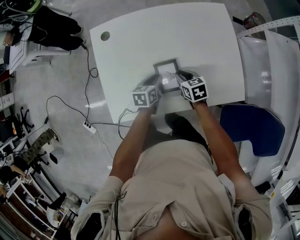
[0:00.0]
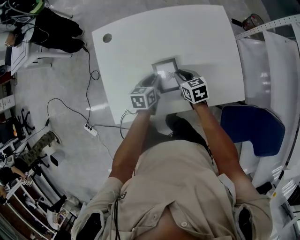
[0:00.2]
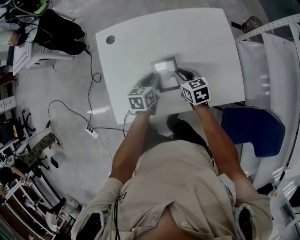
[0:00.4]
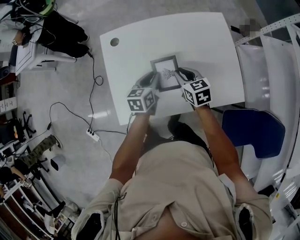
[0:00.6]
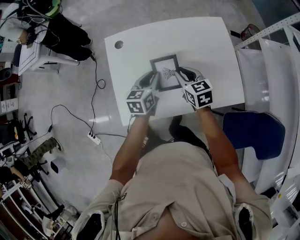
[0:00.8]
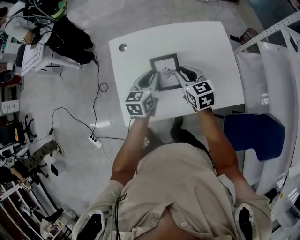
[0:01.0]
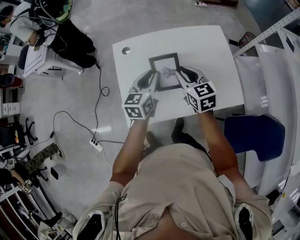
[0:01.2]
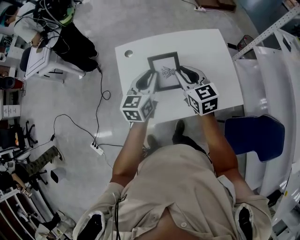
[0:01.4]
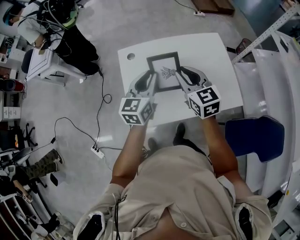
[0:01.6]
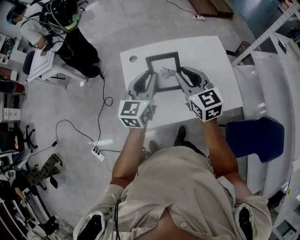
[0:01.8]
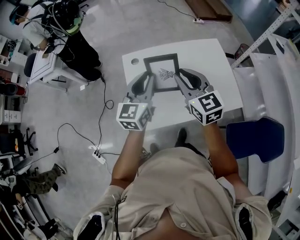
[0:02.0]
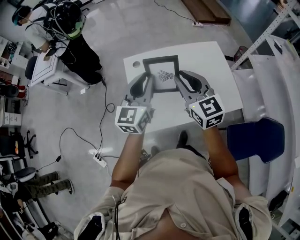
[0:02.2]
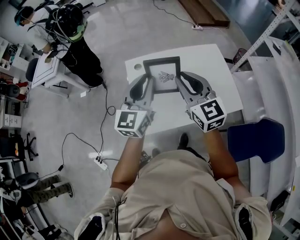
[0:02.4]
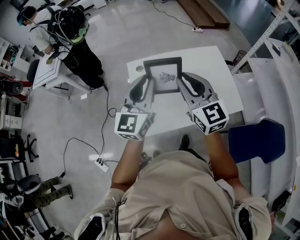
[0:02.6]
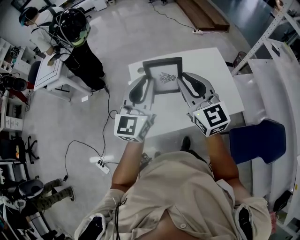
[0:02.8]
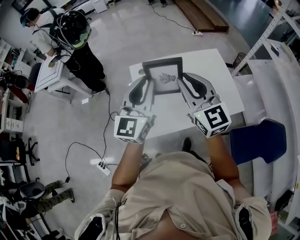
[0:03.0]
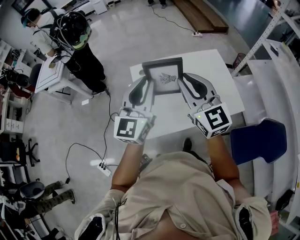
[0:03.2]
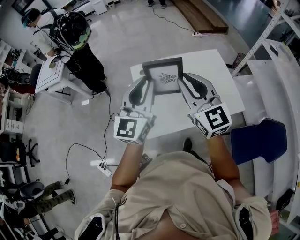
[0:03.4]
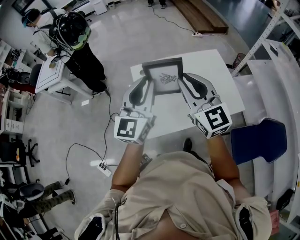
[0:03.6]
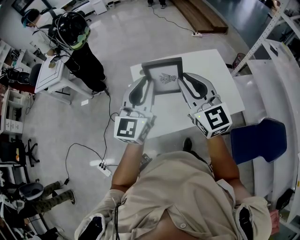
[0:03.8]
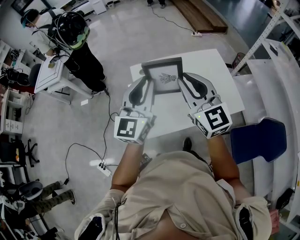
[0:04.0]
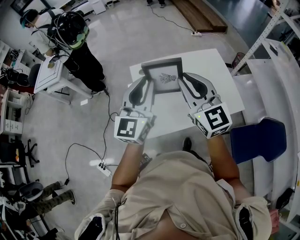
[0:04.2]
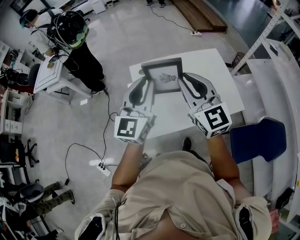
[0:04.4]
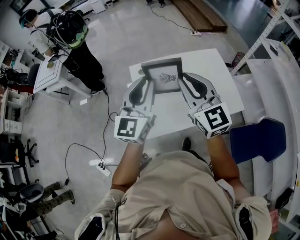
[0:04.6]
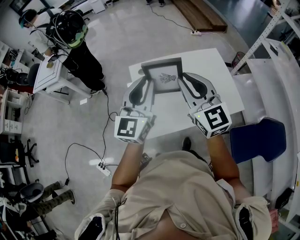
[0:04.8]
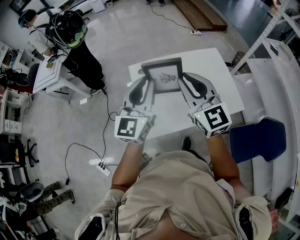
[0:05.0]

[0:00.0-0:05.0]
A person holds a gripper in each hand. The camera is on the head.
0:00.0 to 0:01.6: The two grippers go some 35 cm upward. The left gripper points its fingers roughly 30 degrees further upward. The right gripper points its fingers roughly 30 degrees further upward.
0:01.6 to 0:03.4: Both grippers move upward, to the left and backward, approximately 20 cm. The left gripper turns by some 20 degrees; the right gripper rotates approximately 20 degrees.
0:03.4 to 0:05.0: There are only small adjustments of the grippers.

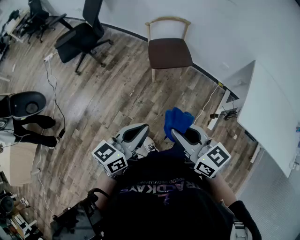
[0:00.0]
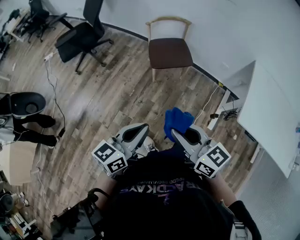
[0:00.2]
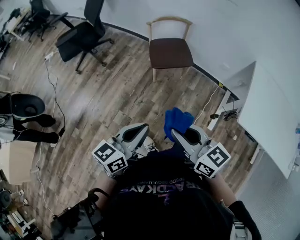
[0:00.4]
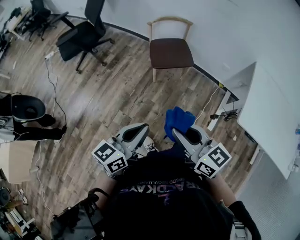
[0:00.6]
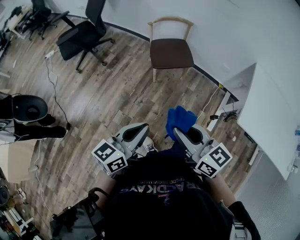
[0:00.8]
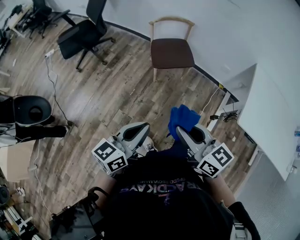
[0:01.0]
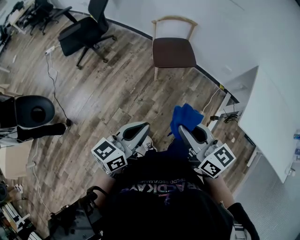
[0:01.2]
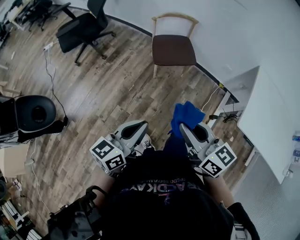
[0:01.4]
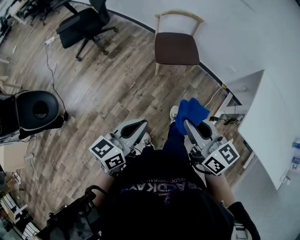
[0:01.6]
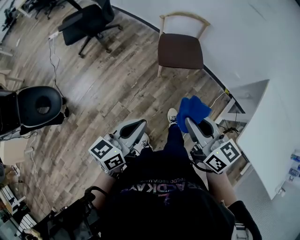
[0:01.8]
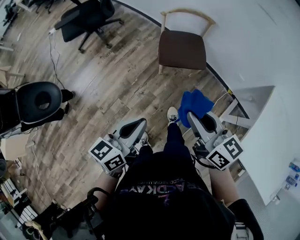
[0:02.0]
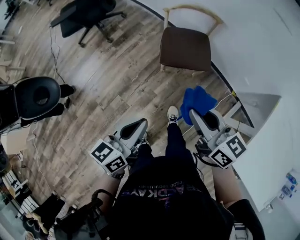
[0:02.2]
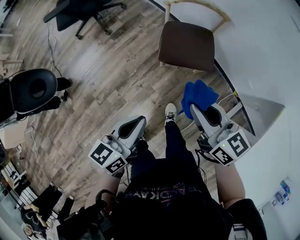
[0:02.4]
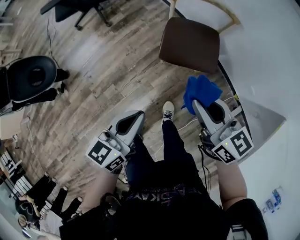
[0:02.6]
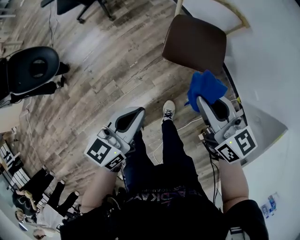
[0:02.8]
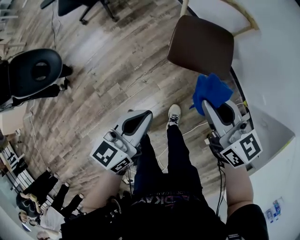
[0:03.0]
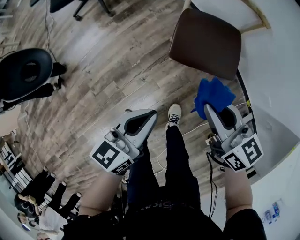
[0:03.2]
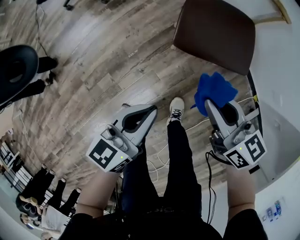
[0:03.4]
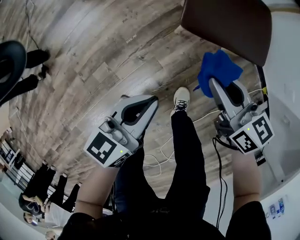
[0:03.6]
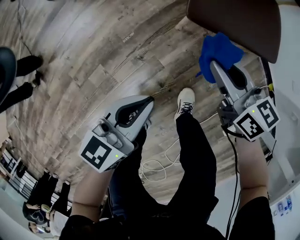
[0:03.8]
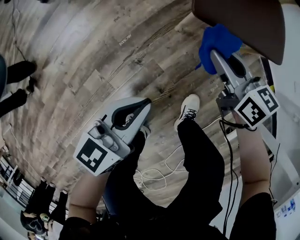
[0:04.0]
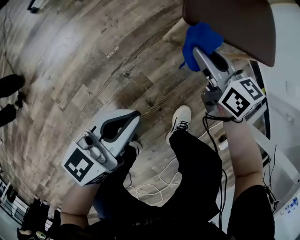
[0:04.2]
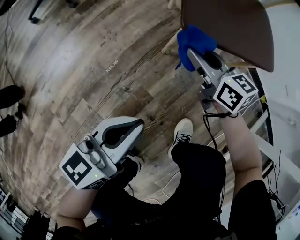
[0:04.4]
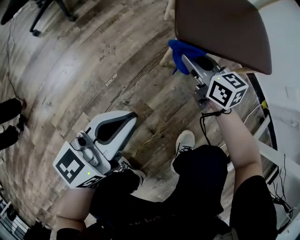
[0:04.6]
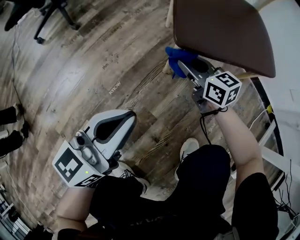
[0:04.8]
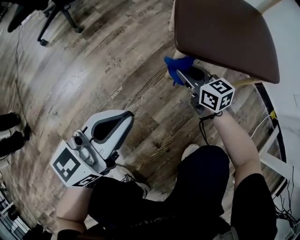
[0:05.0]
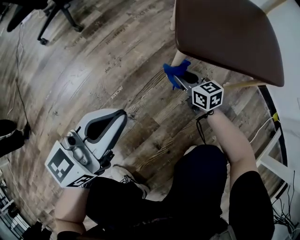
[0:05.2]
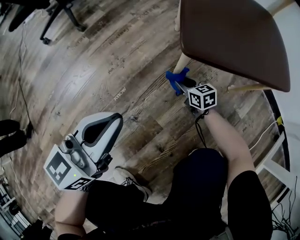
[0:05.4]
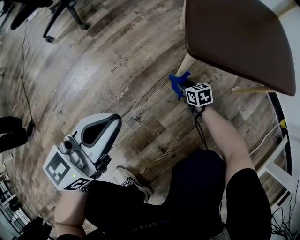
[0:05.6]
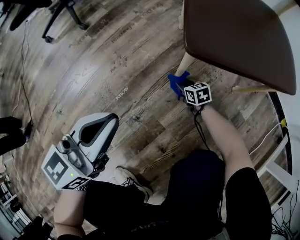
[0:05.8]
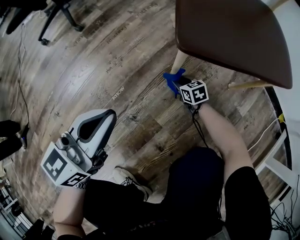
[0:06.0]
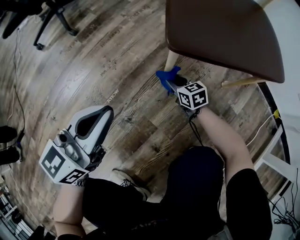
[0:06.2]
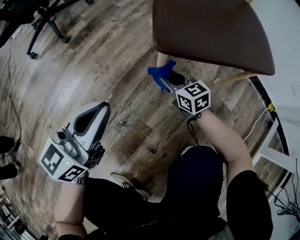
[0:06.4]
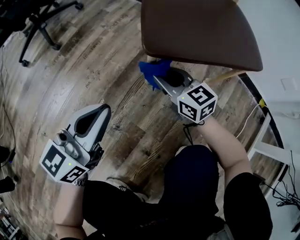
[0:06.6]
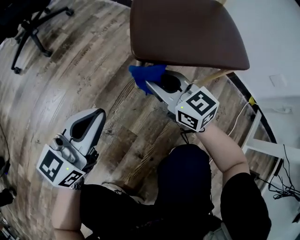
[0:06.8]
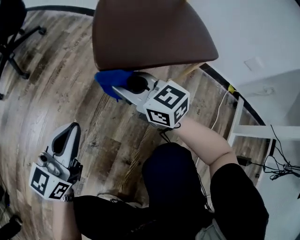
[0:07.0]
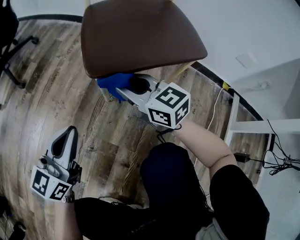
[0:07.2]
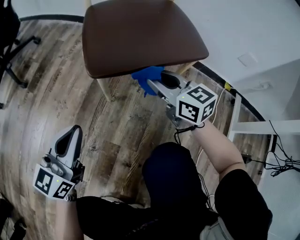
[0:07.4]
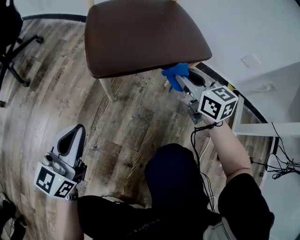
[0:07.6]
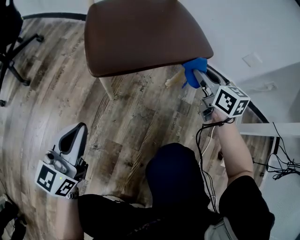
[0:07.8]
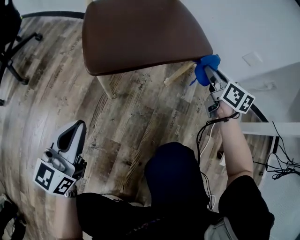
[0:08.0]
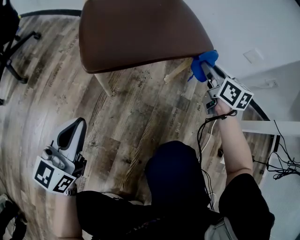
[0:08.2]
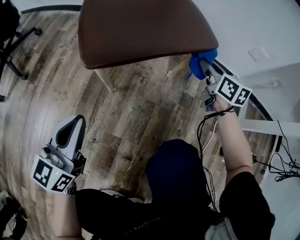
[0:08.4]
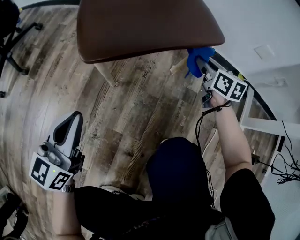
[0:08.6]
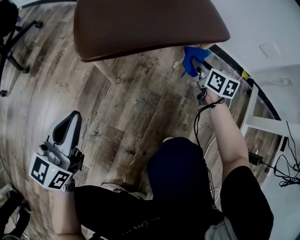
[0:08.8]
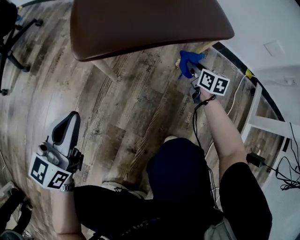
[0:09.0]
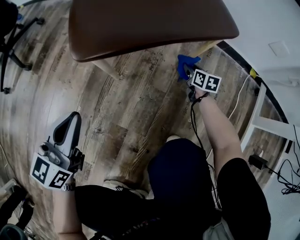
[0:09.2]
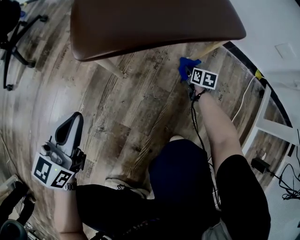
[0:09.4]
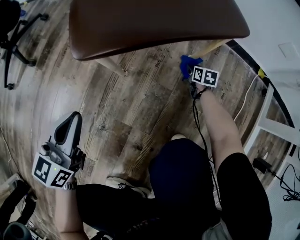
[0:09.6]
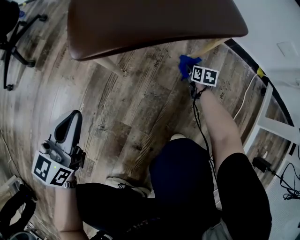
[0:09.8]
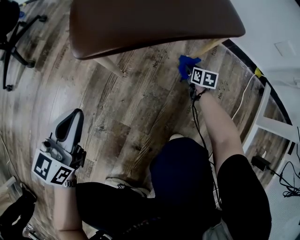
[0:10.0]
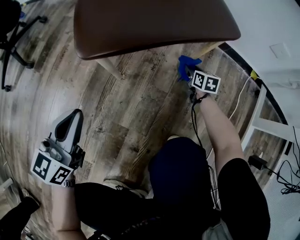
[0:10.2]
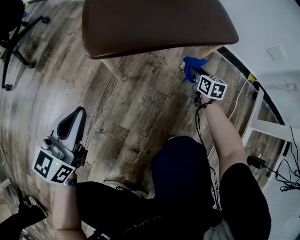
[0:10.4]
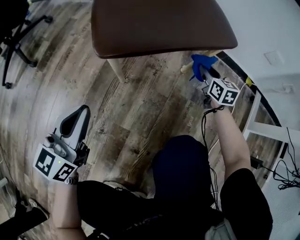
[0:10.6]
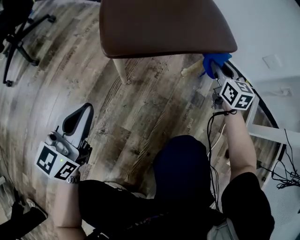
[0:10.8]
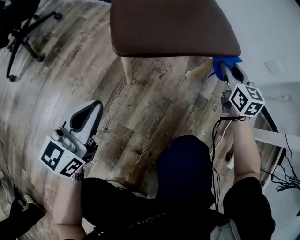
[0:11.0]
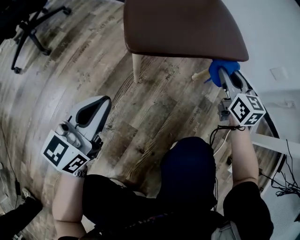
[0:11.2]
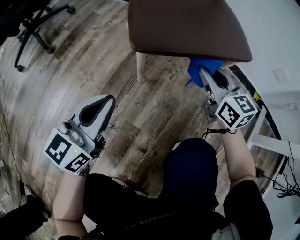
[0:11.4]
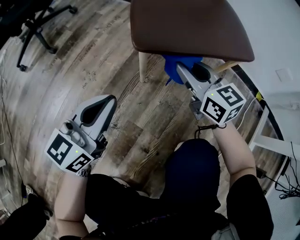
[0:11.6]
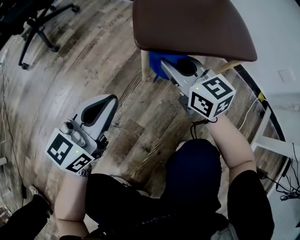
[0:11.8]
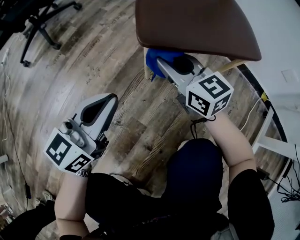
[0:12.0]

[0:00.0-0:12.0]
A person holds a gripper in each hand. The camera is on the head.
0:00.0 to 0:01.6: The right gripper heads forward, covering roughly 5 cm.
0:01.6 to 0:03.0: Both grippers move forward and downward, some 35 cm. The left gripper changes its angle by about 20 degrees, while the right gripper changes its angle by some 20 degrees.
0:03.0 to 0:04.4: The grippers both shift downward by approximately 40 cm.
0:04.4 to 0:06.0: The left gripper heads forward and downward, covering approximately 10 cm. The right gripper shifts roughly 35 cm downward, and swivels approximately 20 degrees.
0:06.0 to 0:07.6: The left gripper is displaced to the right by about 5 cm. Meanwhile the right gripper goes roughly 40 cm upward and to the right, and changes its angle by about 40 degrees.
0:07.6 to 0:09.0: The right gripper is displaced downward and to the right by approximately 25 cm, and swivels roughly 30 degrees.
0:09.0 to 0:10.4: The right gripper reaches some 15 cm downward, then returns.
0:10.4 to 0:12.0: The right gripper travels to the left and upward by about 40 cm, and changes its angle by about 50 degrees.

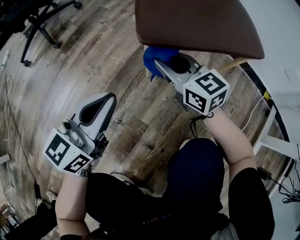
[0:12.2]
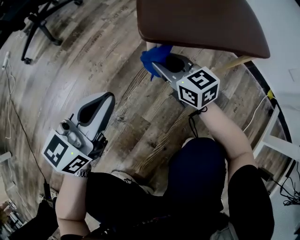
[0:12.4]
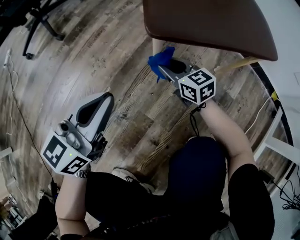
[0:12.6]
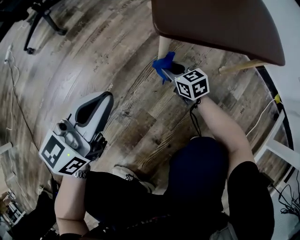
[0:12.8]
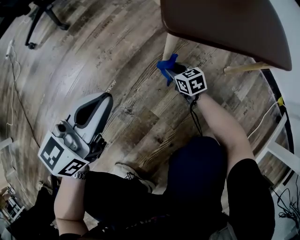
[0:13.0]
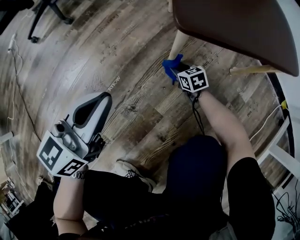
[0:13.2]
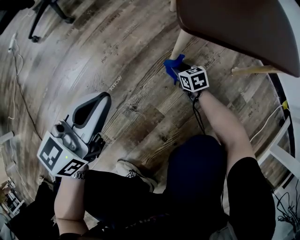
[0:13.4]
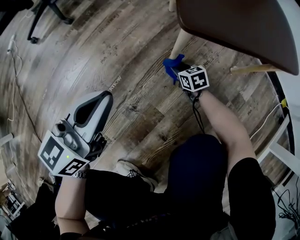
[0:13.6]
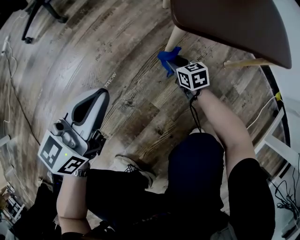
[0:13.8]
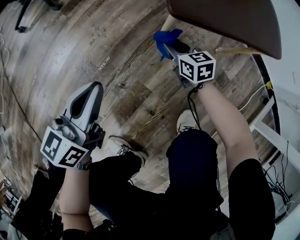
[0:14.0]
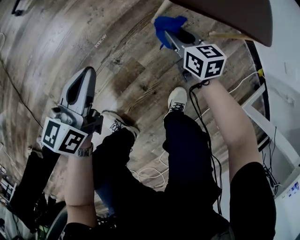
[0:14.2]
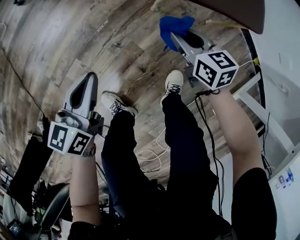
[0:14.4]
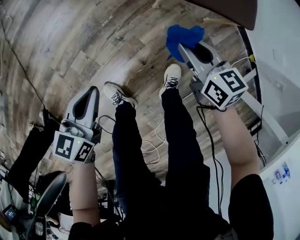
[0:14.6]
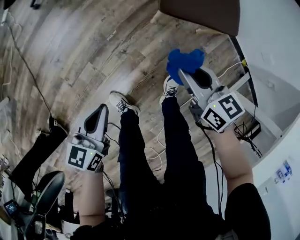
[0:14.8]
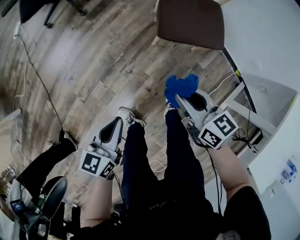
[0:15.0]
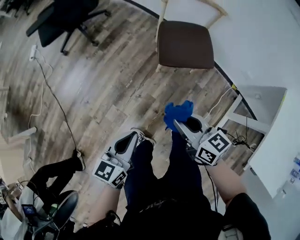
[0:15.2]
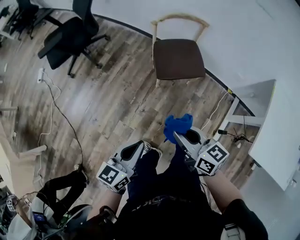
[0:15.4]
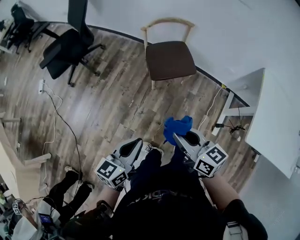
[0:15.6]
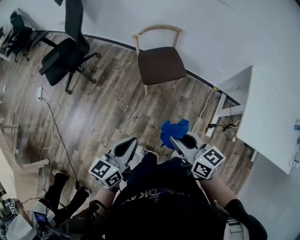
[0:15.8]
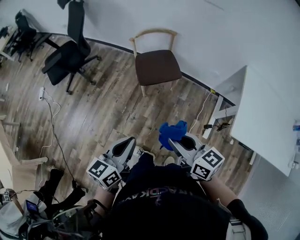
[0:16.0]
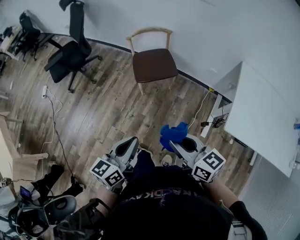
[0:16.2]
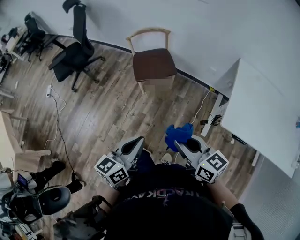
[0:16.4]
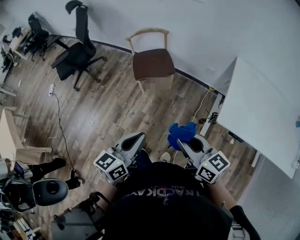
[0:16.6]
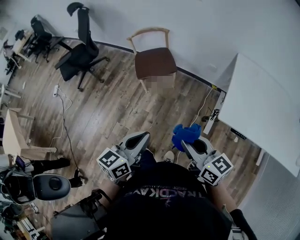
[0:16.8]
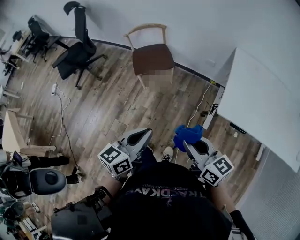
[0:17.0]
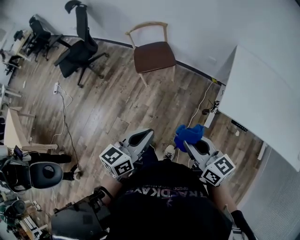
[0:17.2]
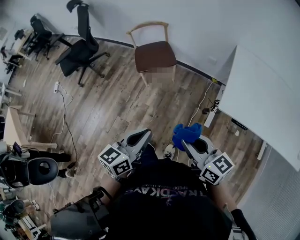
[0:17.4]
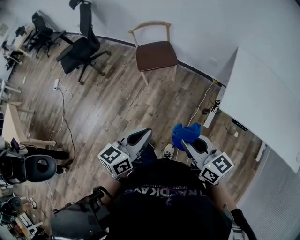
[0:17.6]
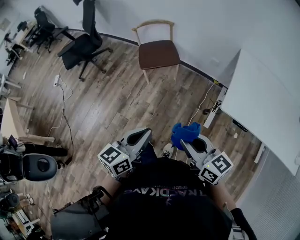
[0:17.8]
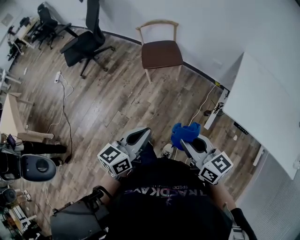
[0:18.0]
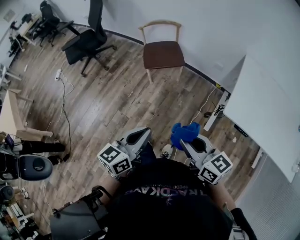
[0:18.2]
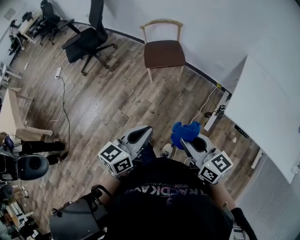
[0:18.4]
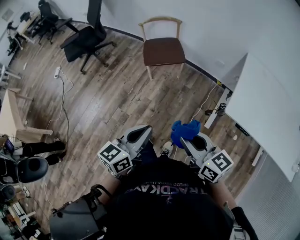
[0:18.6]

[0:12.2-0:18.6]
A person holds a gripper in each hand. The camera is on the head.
0:12.2 to 0:13.8: The right gripper is displaced downward by some 25 cm, and changes its angle by roughly 30 degrees; the left gripper goes roughly 5 cm to the left.
0:13.8 to 0:15.4: The left gripper travels upward and backward by some 60 cm. Meanwhile the right gripper goes some 90 cm upward and backward, and turns by some 30 degrees.
0:15.4 to 0:17.0: The left gripper heads to the right, backward and upward, covering about 35 cm. Meanwhile the right gripper goes approximately 40 cm backward and to the right.
0:17.0 to 0:18.6: The right gripper moves to the left, roughly 5 cm. Meanwhile the left gripper moves about 5 cm.
